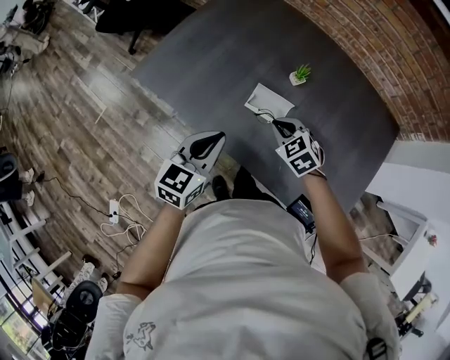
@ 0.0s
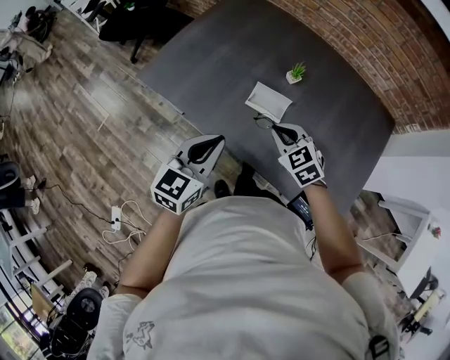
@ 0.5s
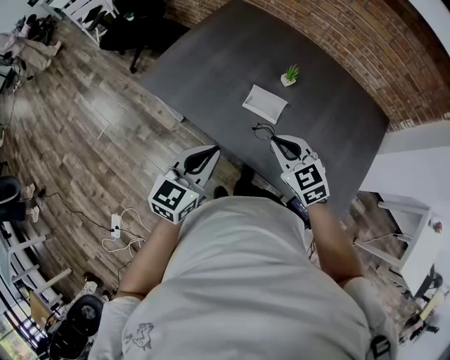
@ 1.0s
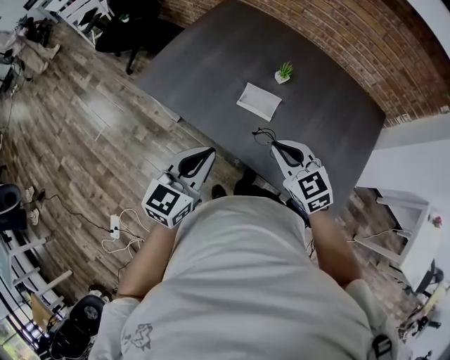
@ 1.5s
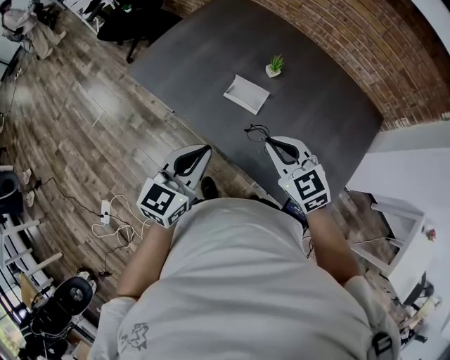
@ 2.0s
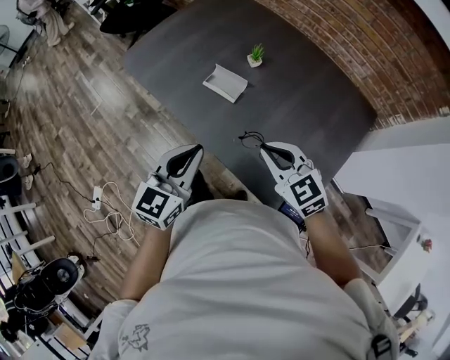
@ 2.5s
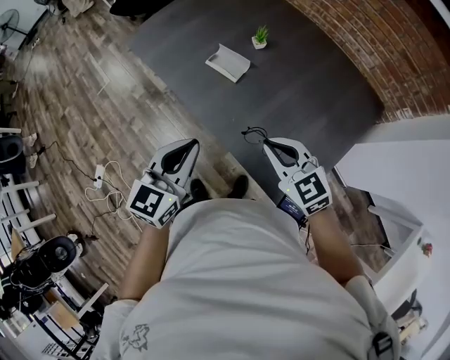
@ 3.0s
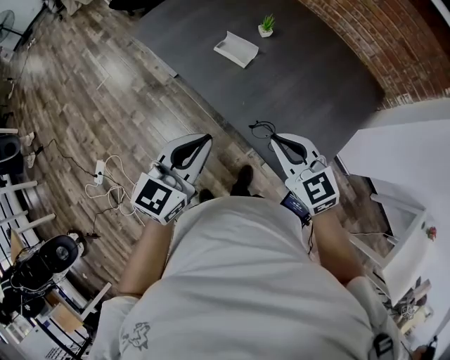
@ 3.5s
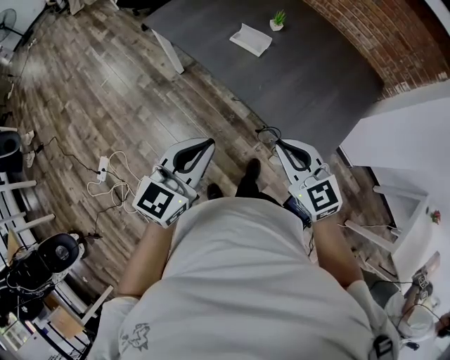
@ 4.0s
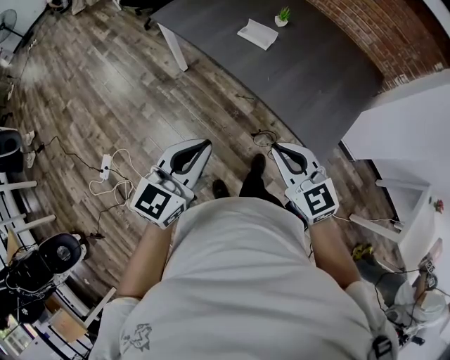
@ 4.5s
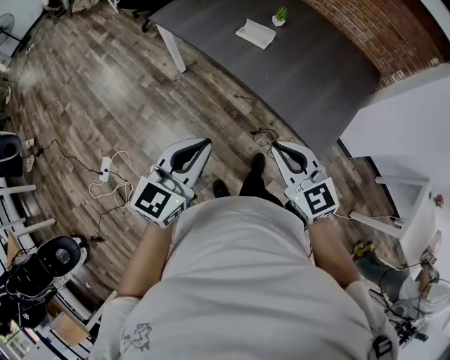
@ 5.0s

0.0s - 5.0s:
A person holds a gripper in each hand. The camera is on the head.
0.0s - 2.5s: Both grippers travel together backward, to the right and upward, some 25 cm. The right gripper turns by some 30 degrees.
2.5s - 5.0s: Both grippers move backward and to the left, roughly 30 cm.

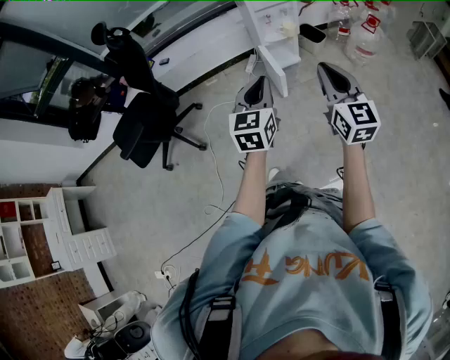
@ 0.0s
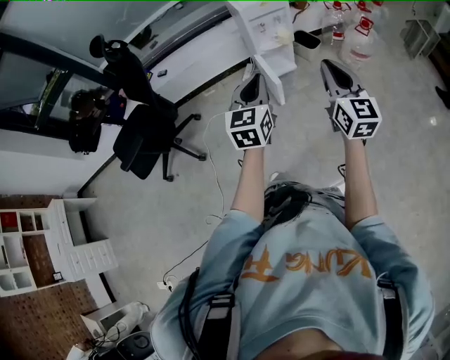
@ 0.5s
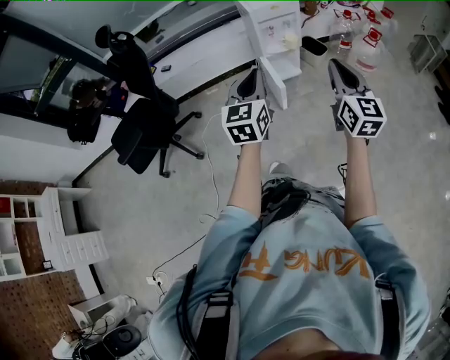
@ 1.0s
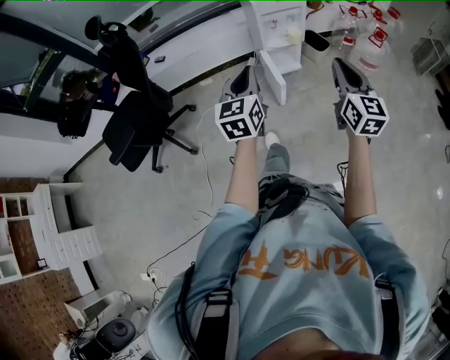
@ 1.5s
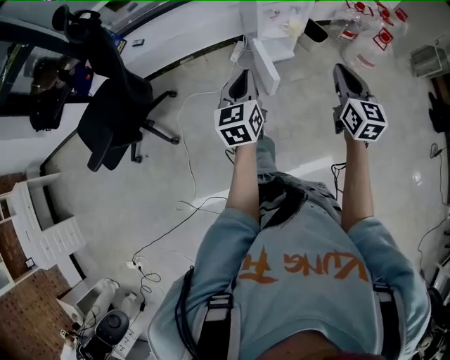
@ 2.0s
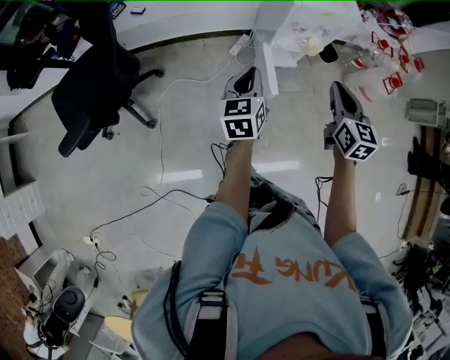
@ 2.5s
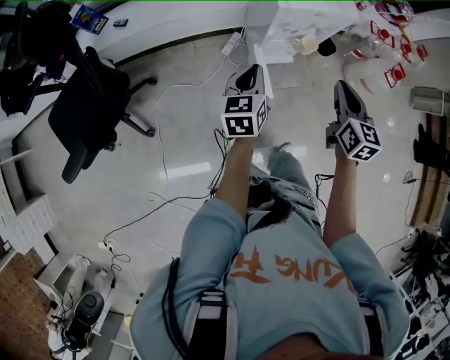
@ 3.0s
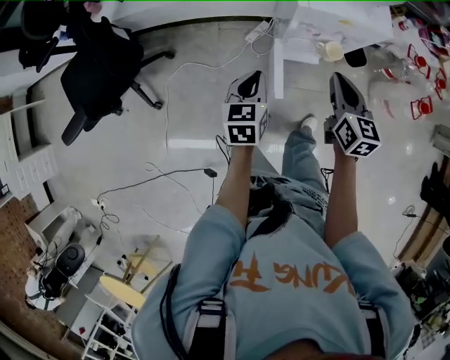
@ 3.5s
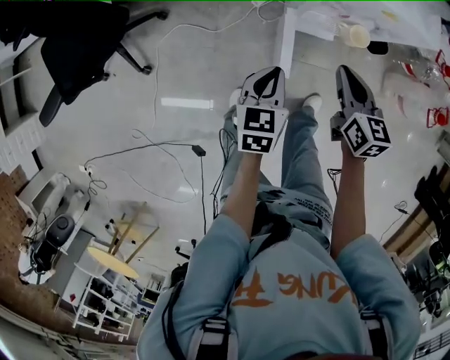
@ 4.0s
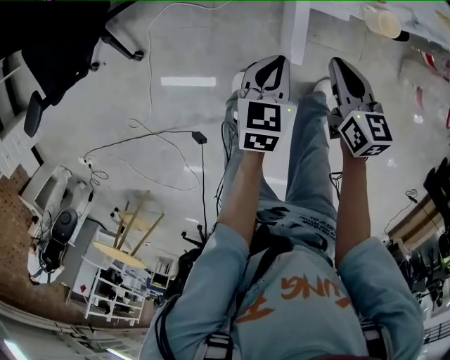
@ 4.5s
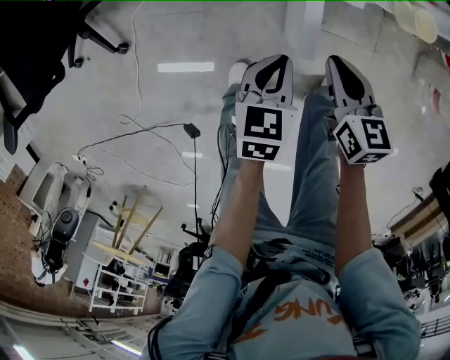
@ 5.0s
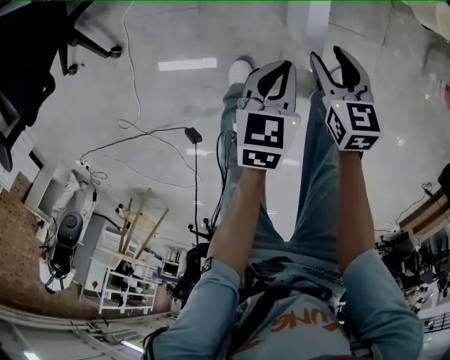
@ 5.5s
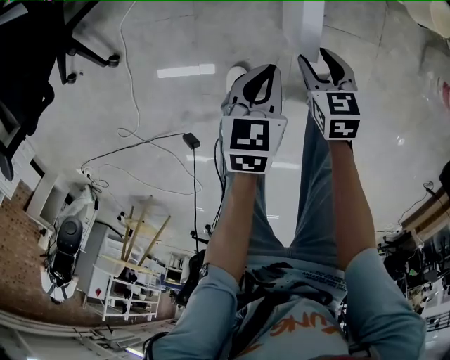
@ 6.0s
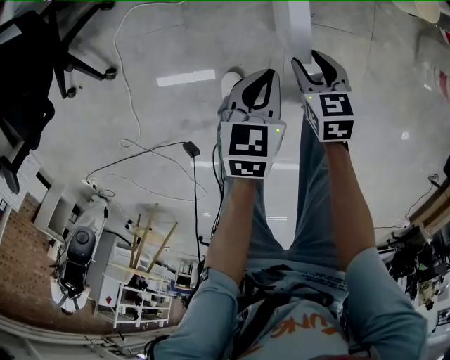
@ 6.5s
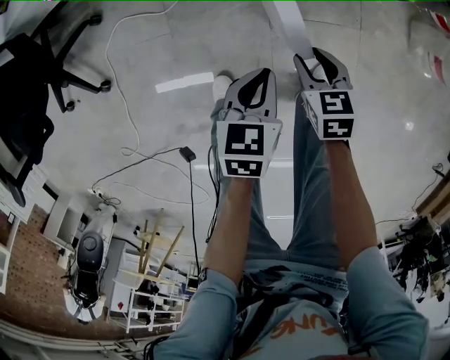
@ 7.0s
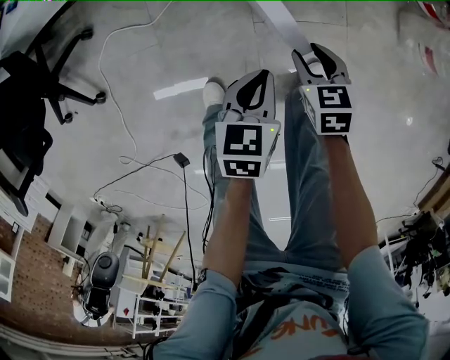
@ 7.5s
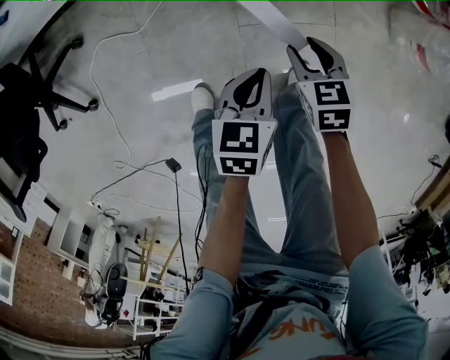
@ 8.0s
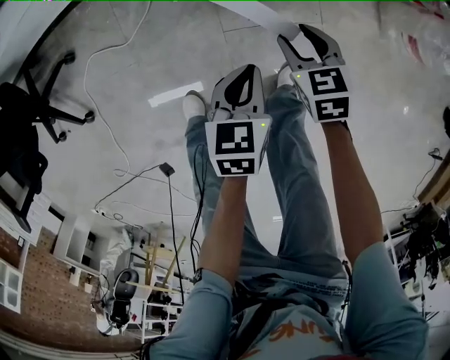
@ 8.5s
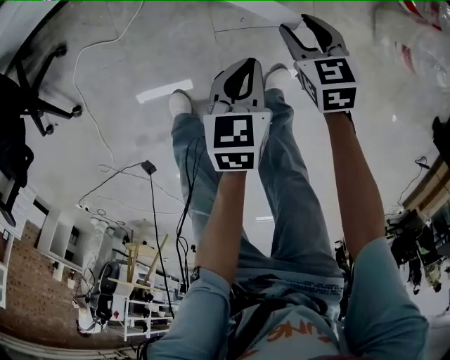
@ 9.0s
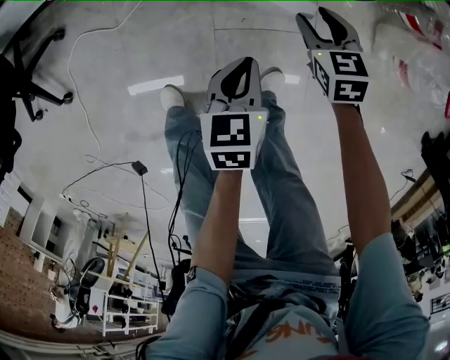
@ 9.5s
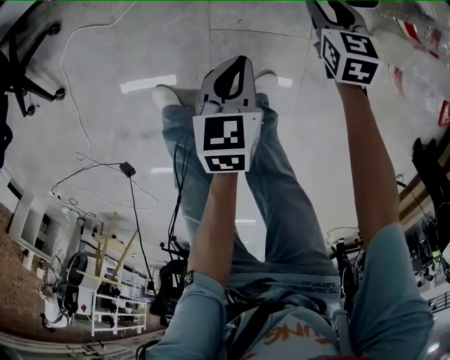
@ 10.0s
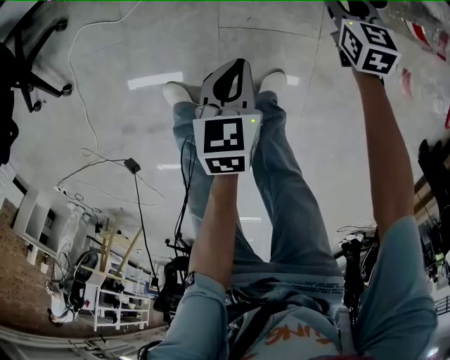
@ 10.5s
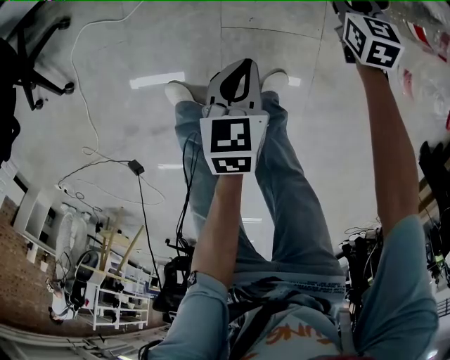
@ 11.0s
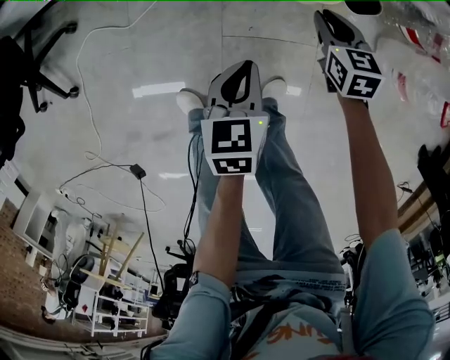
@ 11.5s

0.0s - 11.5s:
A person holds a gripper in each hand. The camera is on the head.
0.0s - 2.0s: The right gripper moves forward and downward, roughly 20 cm. Meanwhile the left gripper heads forward, downward and to the left, covering roughly 20 cm.
2.0s - 4.0s: The right gripper goes roughly 25 cm forward and downward, and swivels roughly 30 degrees; the left gripper heads to the right, downward and forward, covering roughly 20 cm, and rotates roughly 20 degrees.
4.0s - 6.0s: The grippers both shift downward by about 30 cm. The right gripper swivels approximately 30 degrees, and opens.
6.0s - 7.5s: The two grippers go about 10 cm to the right.
7.5s - 9.5s: The right gripper moves forward and to the right, some 20 cm, while the left gripper goes approximately 10 cm to the right and forward.
9.5s - 11.5s: The right gripper travels forward and back again, roughly 10 cm each way, and closes its fingers.

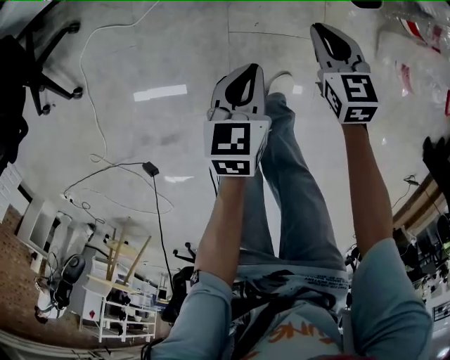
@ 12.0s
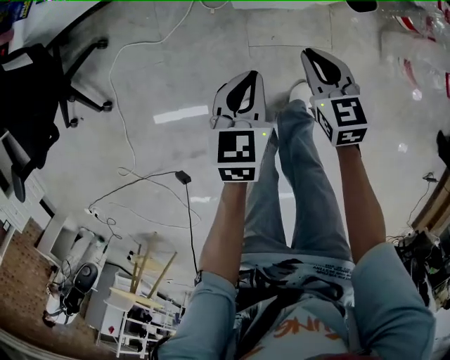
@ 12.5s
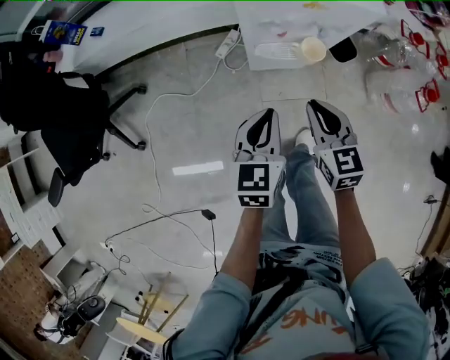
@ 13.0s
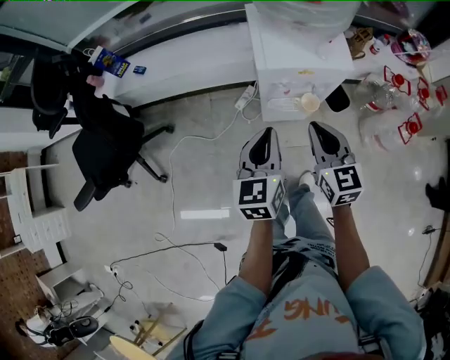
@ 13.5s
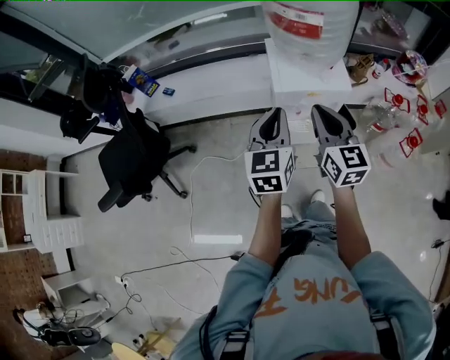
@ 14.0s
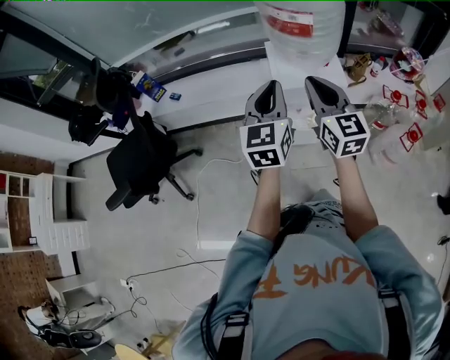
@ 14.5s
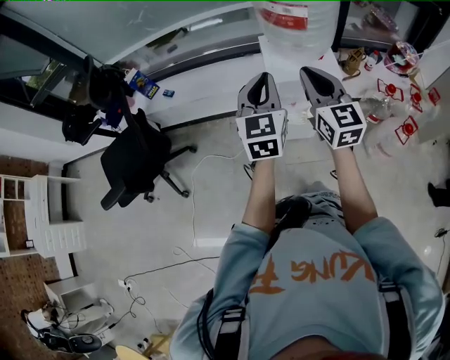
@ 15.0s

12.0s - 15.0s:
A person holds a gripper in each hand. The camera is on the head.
12.0s - 13.5s: The grippers both shift upward by some 40 cm. The right gripper turns by roughly 30 degrees. Meanwhile the left gripper swivels approximately 30 degrees.
13.5s - 15.0s: Both grippers move upward, some 20 cm. The left gripper changes its angle by approximately 20 degrees.

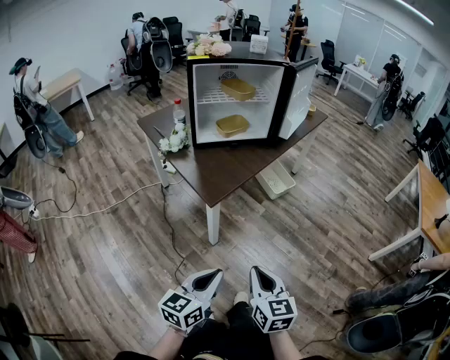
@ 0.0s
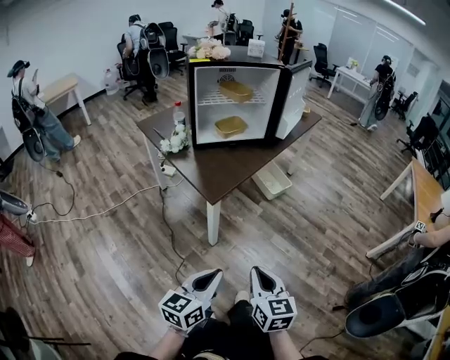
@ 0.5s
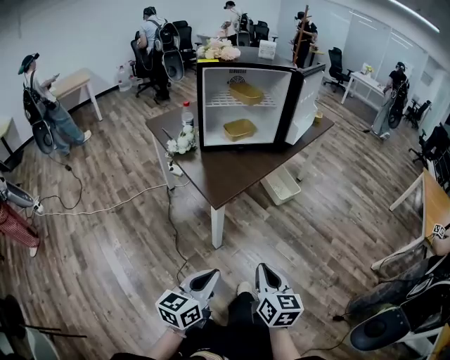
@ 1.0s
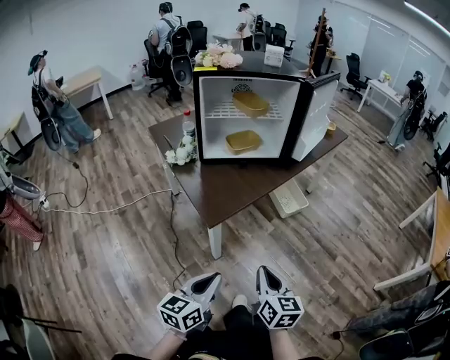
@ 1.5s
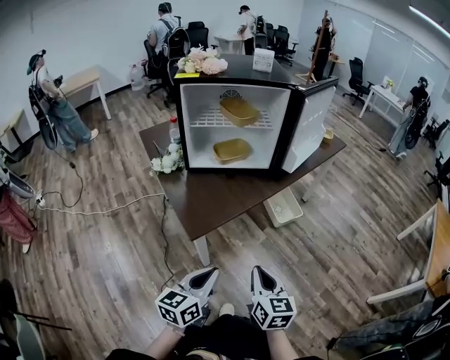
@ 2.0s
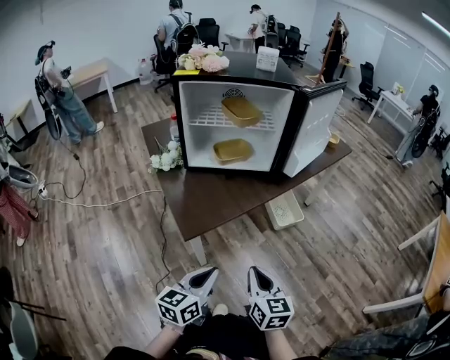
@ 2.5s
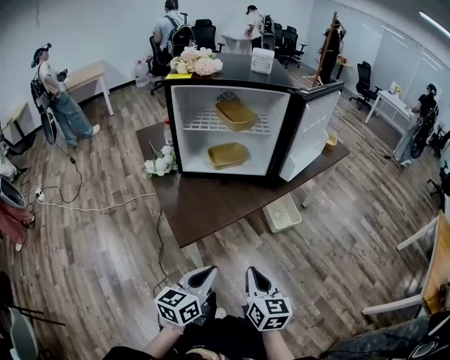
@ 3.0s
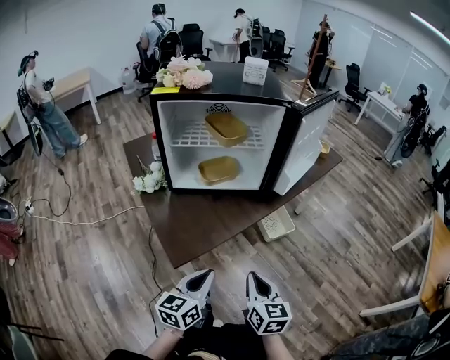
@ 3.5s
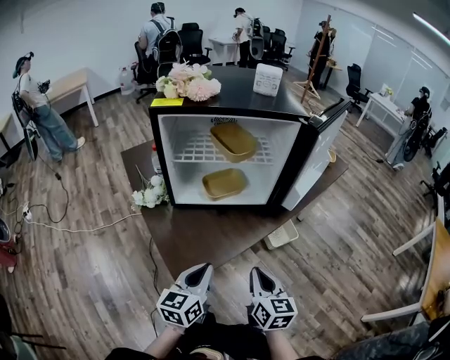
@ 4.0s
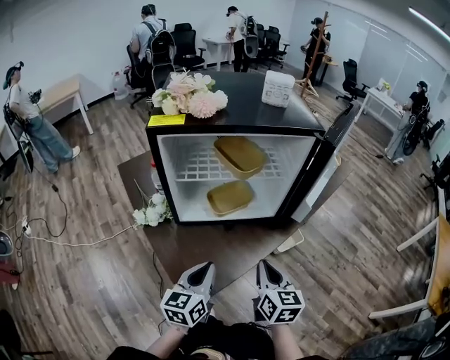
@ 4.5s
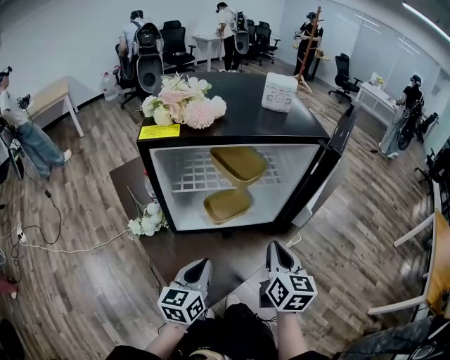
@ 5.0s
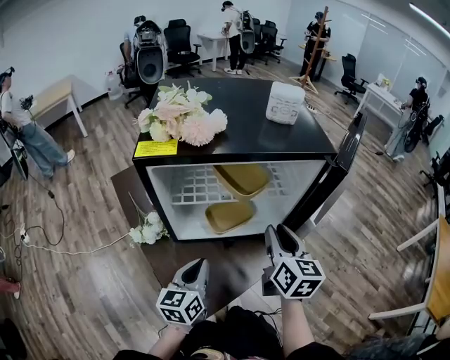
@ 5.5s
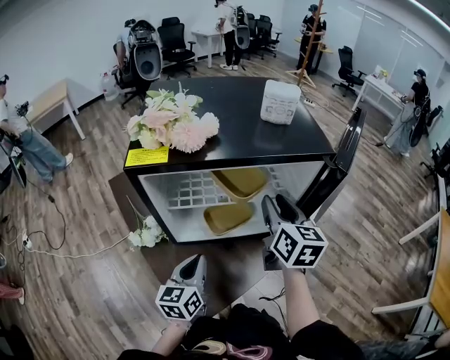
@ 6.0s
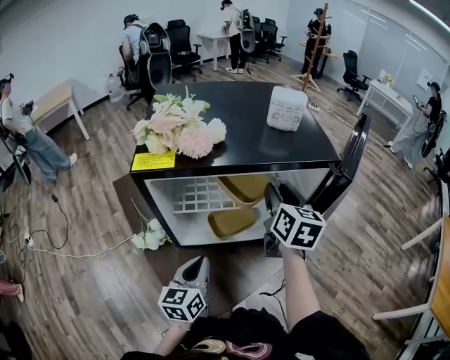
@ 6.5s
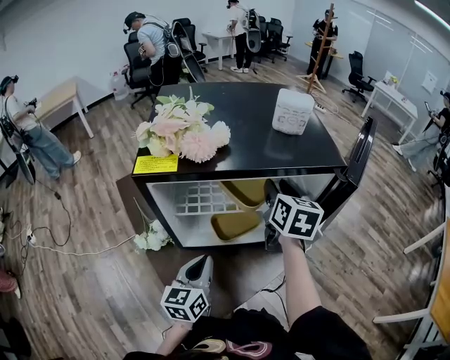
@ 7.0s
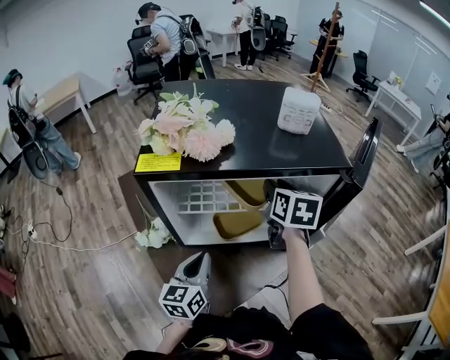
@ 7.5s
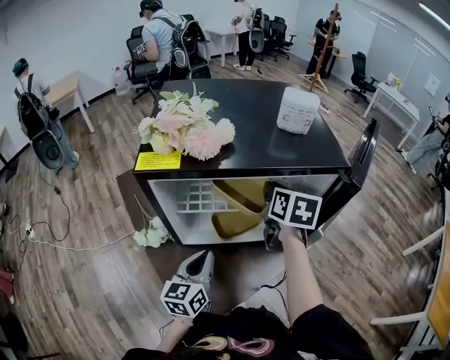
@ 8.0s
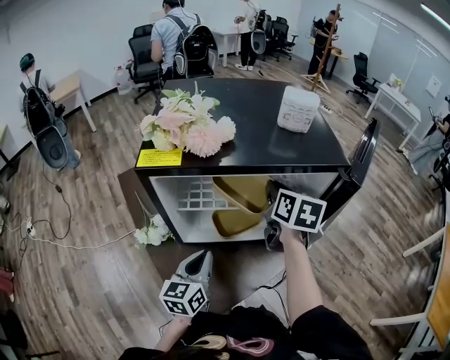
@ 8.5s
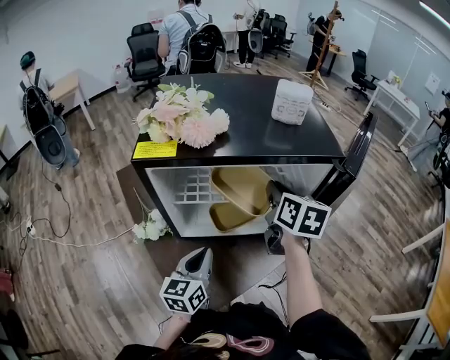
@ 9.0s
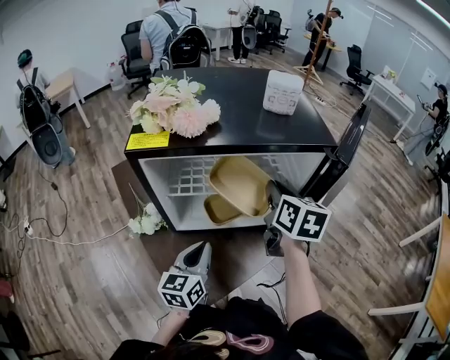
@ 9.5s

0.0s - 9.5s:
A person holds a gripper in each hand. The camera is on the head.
0.0s - 2.0s: The grippers both shift forward by some 20 cm.
2.0s - 4.0s: The two grippers go approximately 20 cm forward.
4.0s - 5.5s: The right gripper moves forward and upward, some 25 cm, and opens up, while the left gripper goes approximately 20 cm forward and to the left.
5.5s - 7.5s: The right gripper moves forward, about 15 cm. Meanwhile the left gripper moves roughly 5 cm.
7.5s - 9.5s: The right gripper goes roughly 5 cm backward, and closes its fingers.
